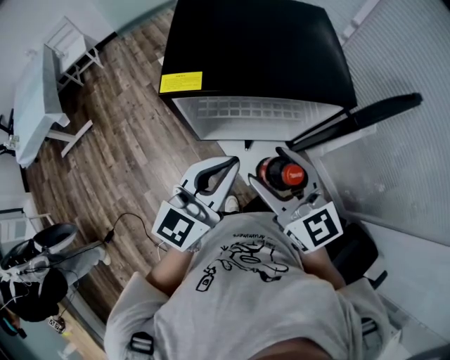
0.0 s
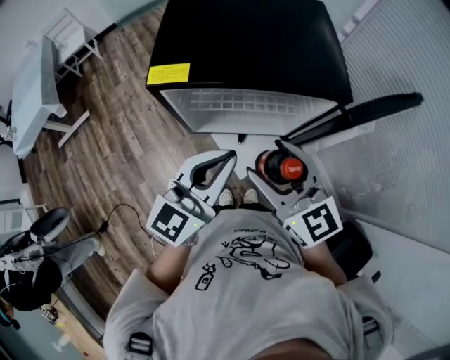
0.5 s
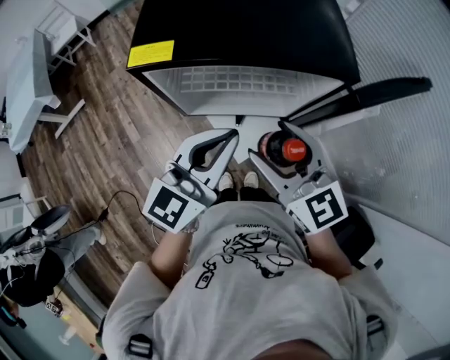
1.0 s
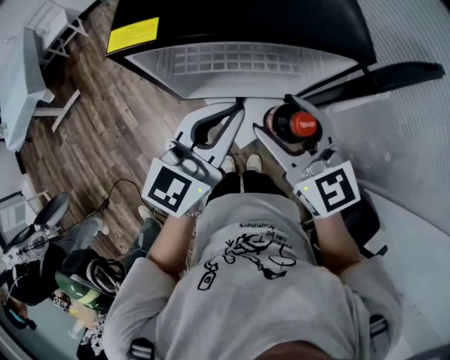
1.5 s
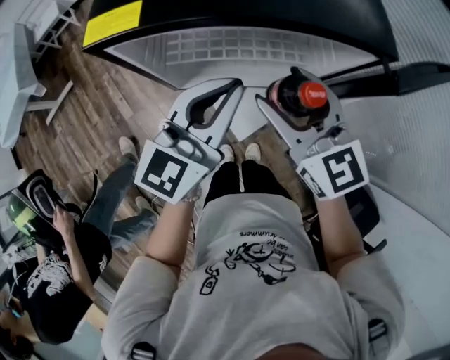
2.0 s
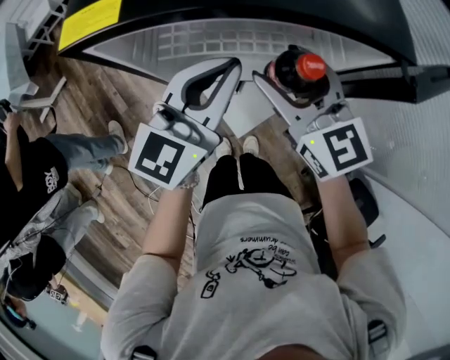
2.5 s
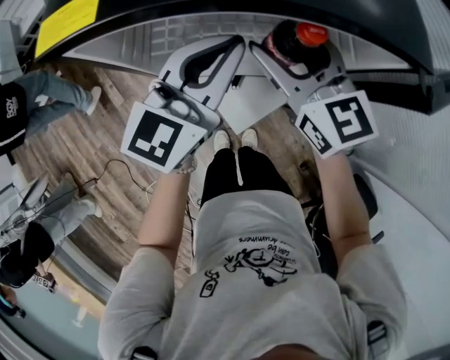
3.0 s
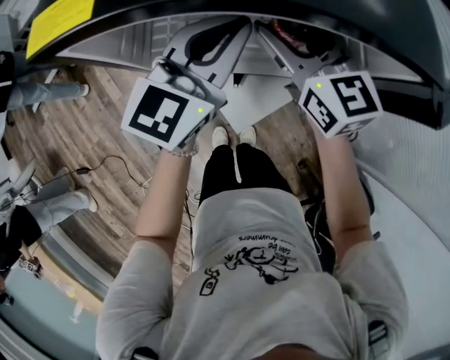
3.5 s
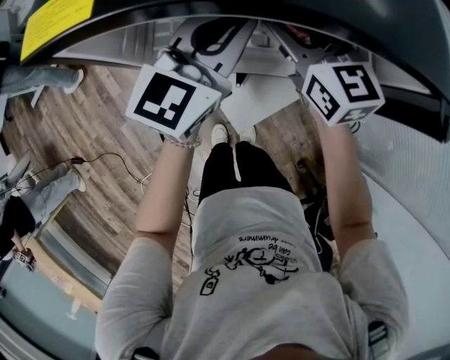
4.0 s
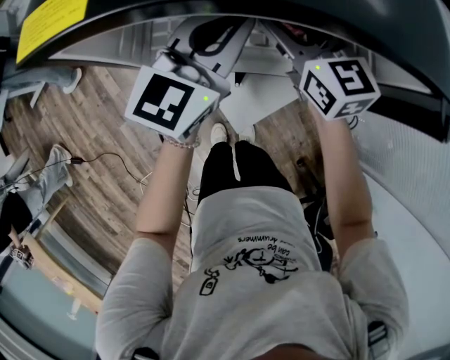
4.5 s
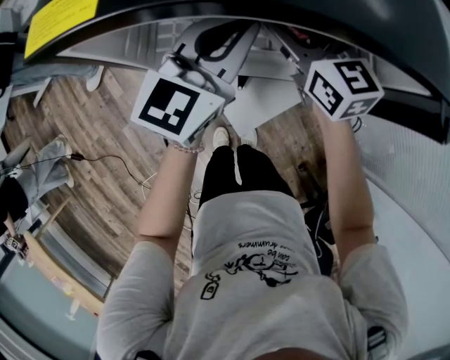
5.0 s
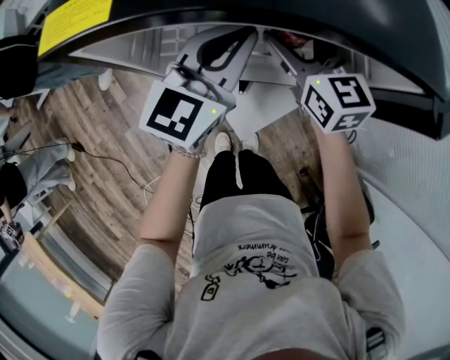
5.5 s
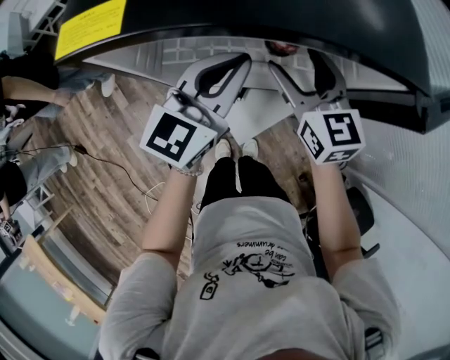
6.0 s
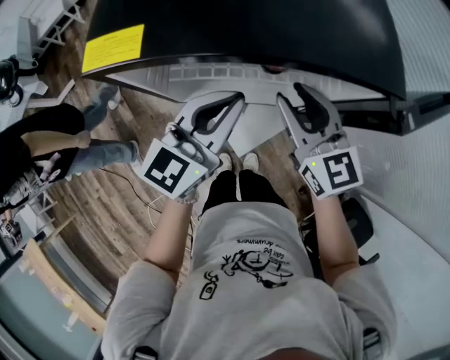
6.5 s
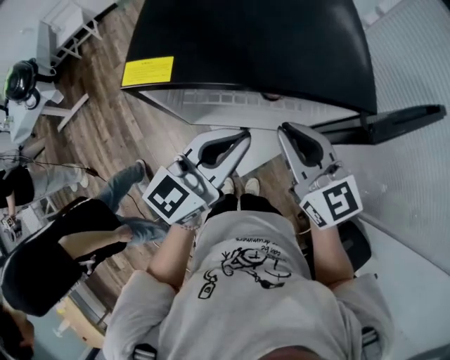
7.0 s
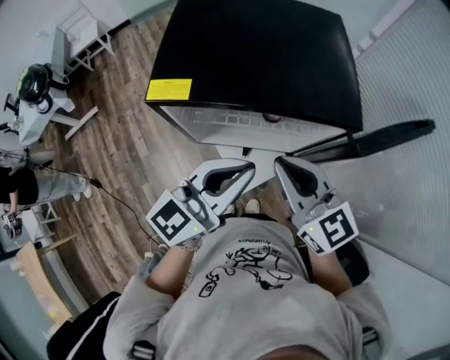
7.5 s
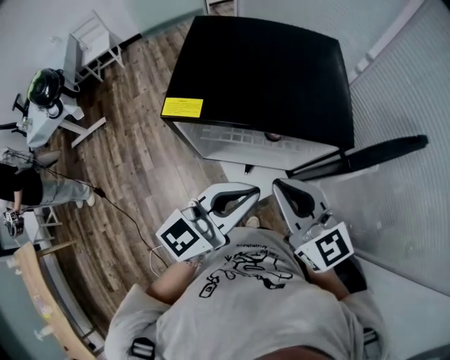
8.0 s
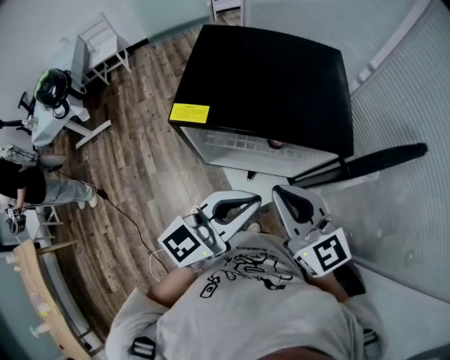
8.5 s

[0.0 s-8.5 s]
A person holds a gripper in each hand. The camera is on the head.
0.0 to 2.0 s: The grippers both shift forward and downward by some 10 cm.
2.0 to 4.0 s: Both grippers move forward and downward, some 15 cm.
4.0 to 6.5 s: The grippers both shift backward by about 10 cm. The right gripper closes up.
6.5 to 8.5 s: Both grippers travel together upward and backward, roughly 15 cm. The right gripper closes up.

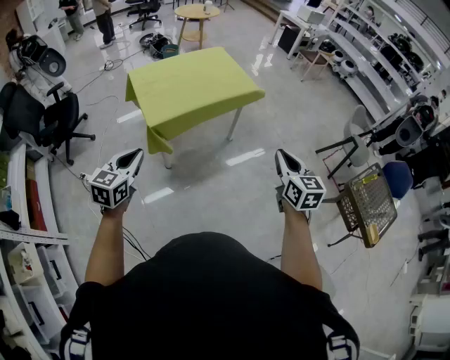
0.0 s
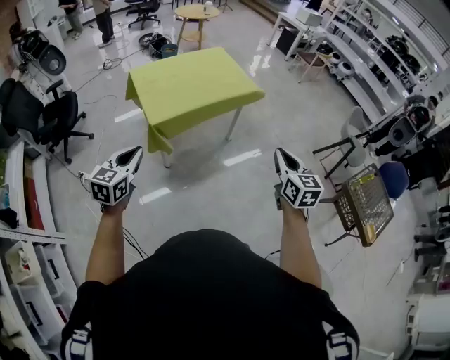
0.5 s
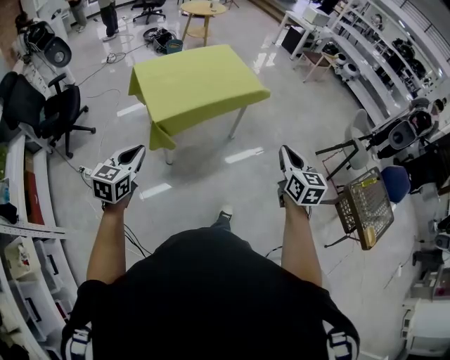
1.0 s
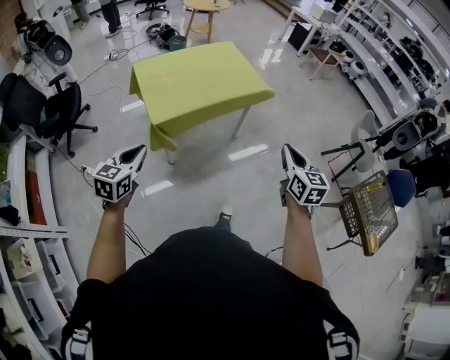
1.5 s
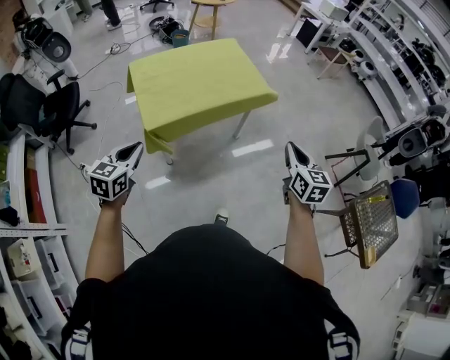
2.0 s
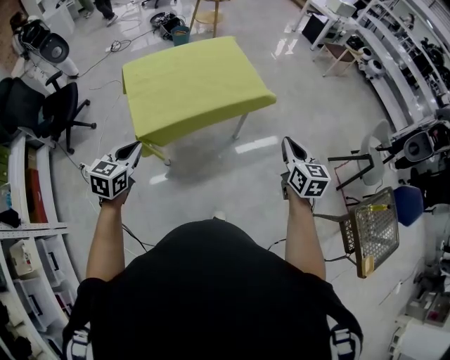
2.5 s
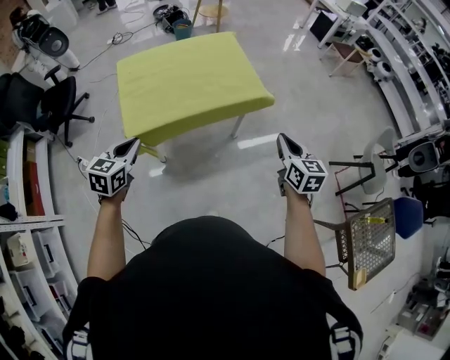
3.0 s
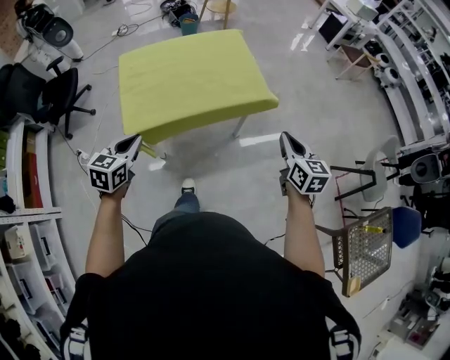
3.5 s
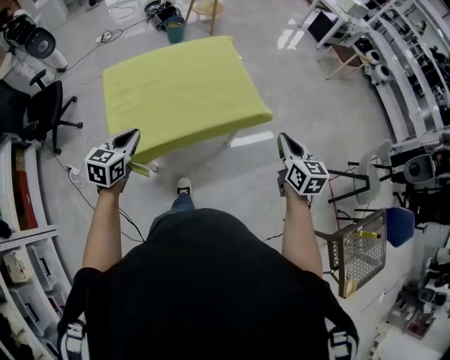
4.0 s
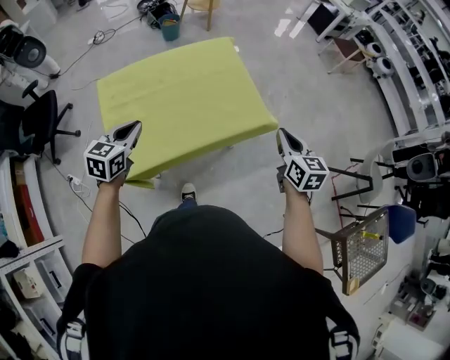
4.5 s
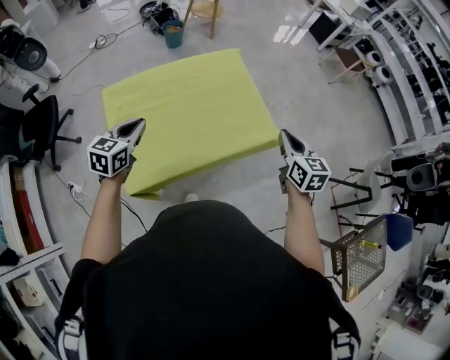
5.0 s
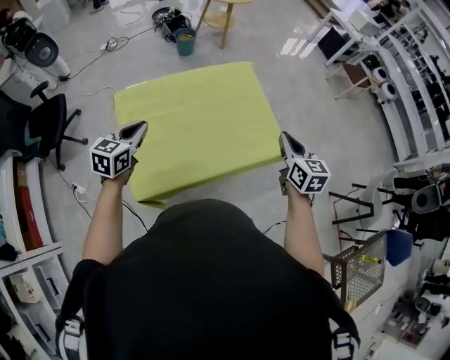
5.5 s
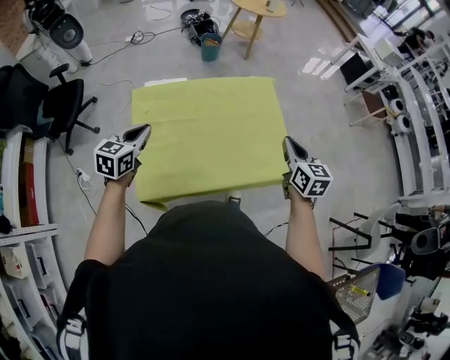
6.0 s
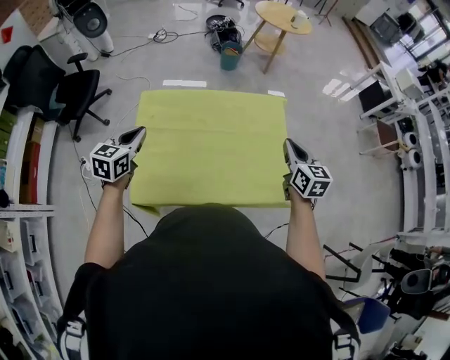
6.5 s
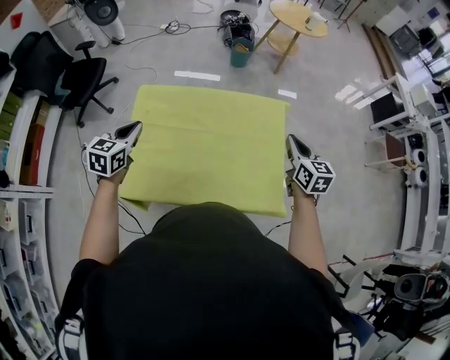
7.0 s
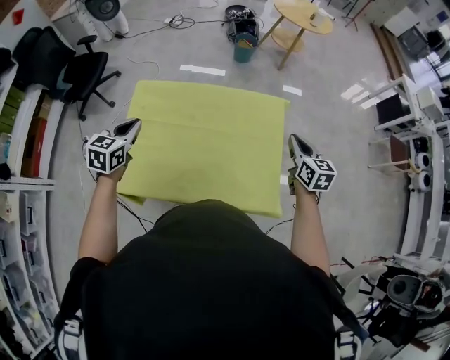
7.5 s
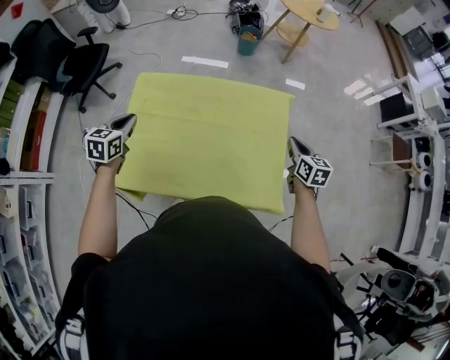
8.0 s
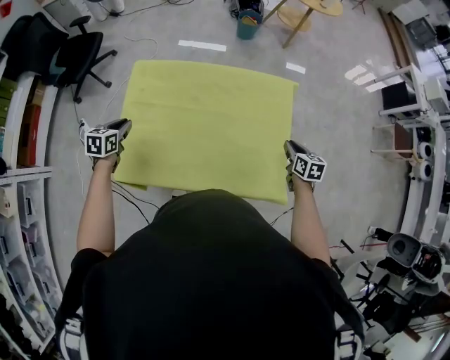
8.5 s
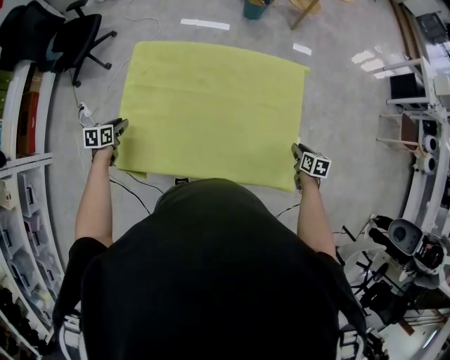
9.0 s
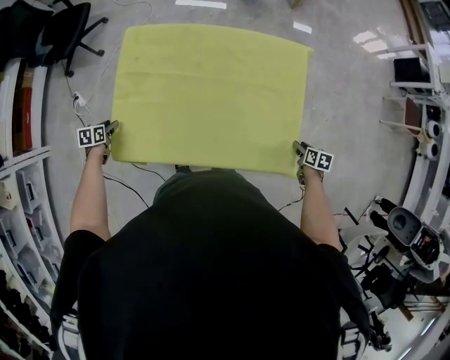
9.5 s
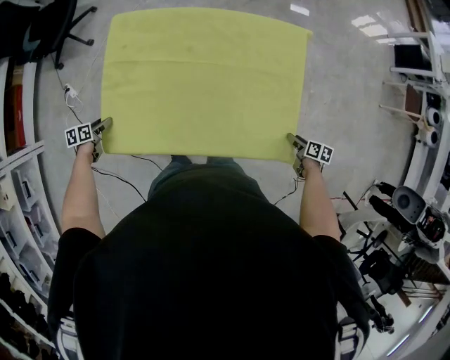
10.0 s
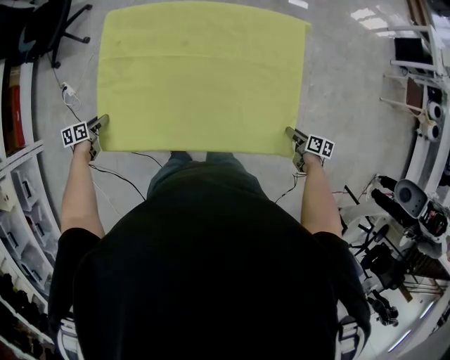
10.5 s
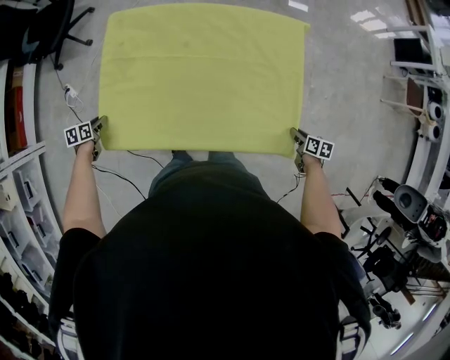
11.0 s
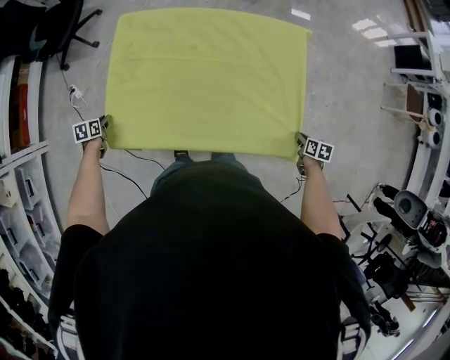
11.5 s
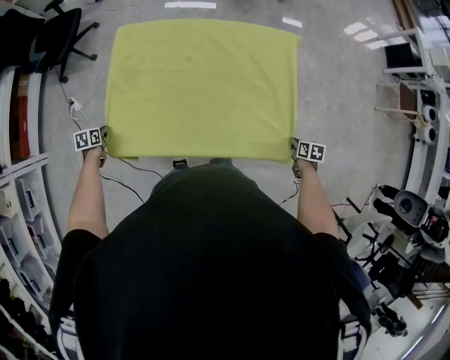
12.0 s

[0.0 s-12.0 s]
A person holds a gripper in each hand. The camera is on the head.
0.0 to 2.0 s: The two grippers go some 20 cm forward.
2.0 to 4.0 s: Both grippers travel together forward, roughly 40 cm.
4.0 to 6.0 s: Both grippers move forward and to the left, approximately 35 cm.
6.0 to 8.0 s: The right gripper shifts roughly 30 cm forward, to the right and downward, while the left gripper heads forward, downward and to the right, covering some 15 cm, and changes its angle by approximately 20 degrees.
8.0 to 10.0 s: The left gripper shifts roughly 40 cm downward and to the left, swivels approximately 40 degrees, and opens its fingers, while the right gripper travels downward and backward by about 35 cm, changes its angle by roughly 40 degrees, and opens its fingers.
10.0 to 12.0 s: The right gripper closes its fingers. Meanwhile the left gripper closes its fingers.

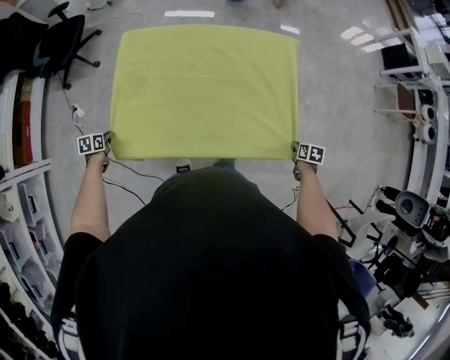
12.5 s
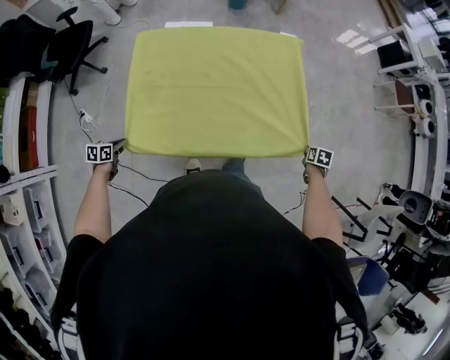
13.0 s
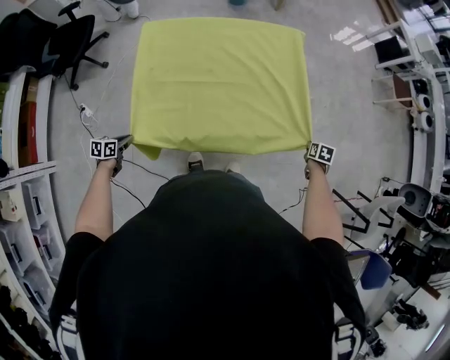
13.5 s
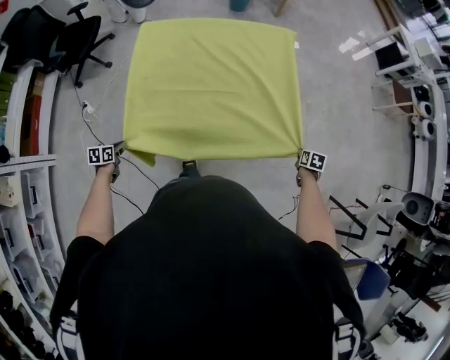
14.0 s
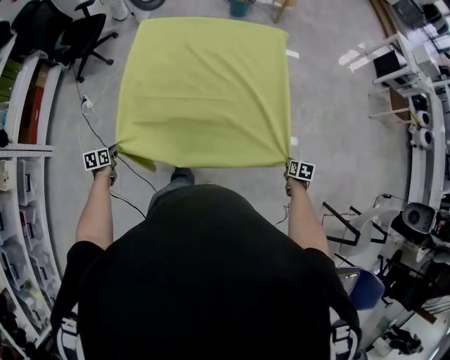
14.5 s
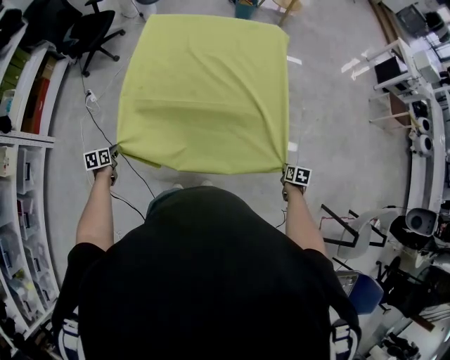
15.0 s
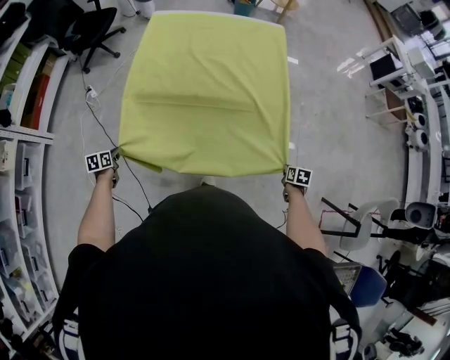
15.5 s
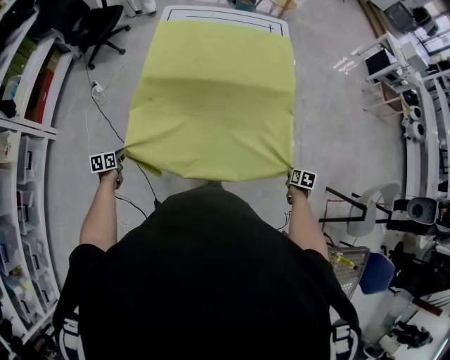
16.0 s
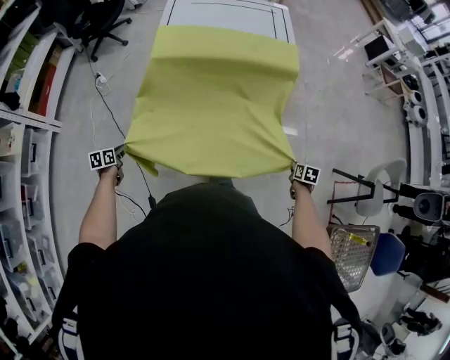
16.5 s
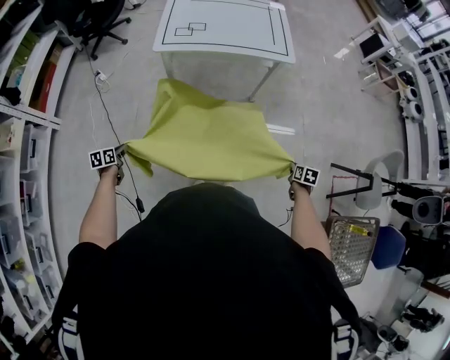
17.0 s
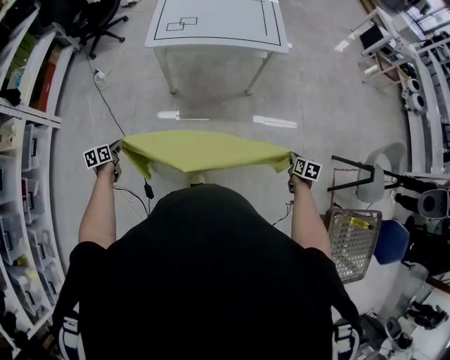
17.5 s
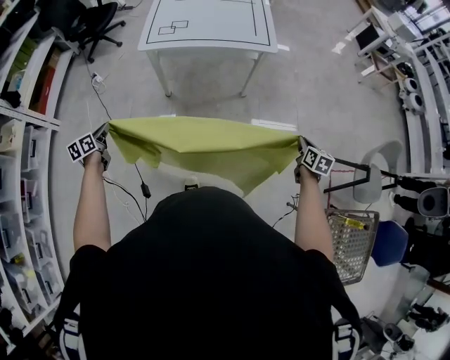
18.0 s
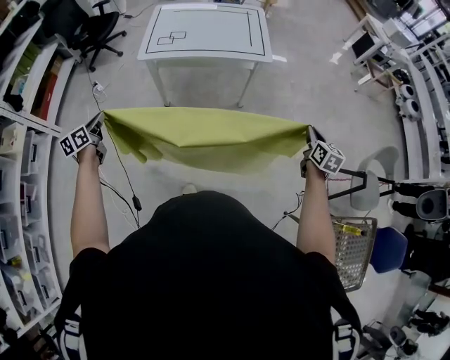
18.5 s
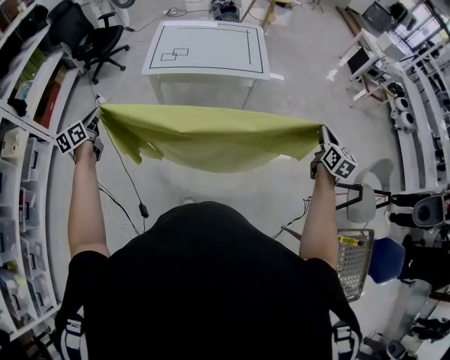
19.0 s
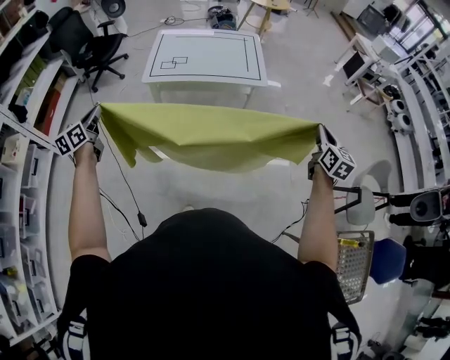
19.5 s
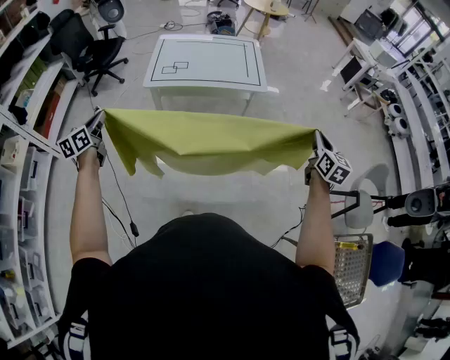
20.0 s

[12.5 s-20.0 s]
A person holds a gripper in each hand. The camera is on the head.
12.5 to 14.5 s: The left gripper changes place by approximately 35 cm, while the right gripper changes place by roughly 30 cm.
14.5 to 16.5 s: The two grippers travel together, backward, some 50 cm.
16.5 to 18.0 s: Both grippers travel together upward and to the right, roughly 20 cm. The right gripper rotates some 20 degrees.
18.0 to 20.0 s: The grippers both shift upward by some 25 cm. The left gripper swivels approximately 20 degrees. The right gripper swivels roughly 30 degrees.
